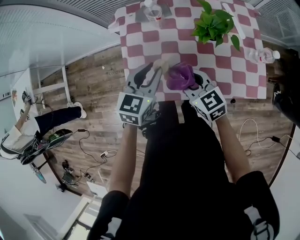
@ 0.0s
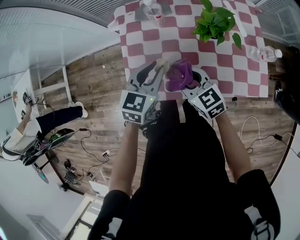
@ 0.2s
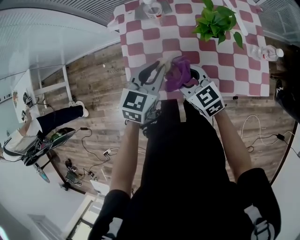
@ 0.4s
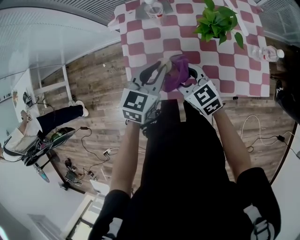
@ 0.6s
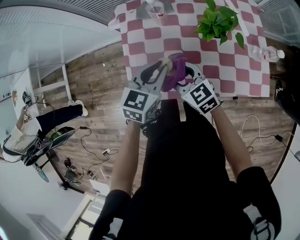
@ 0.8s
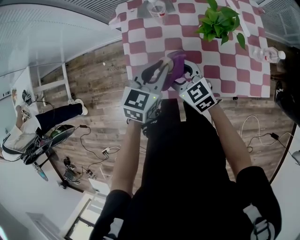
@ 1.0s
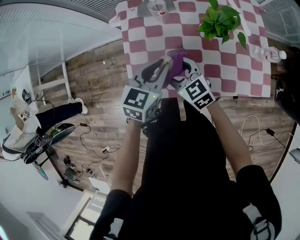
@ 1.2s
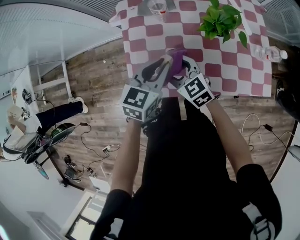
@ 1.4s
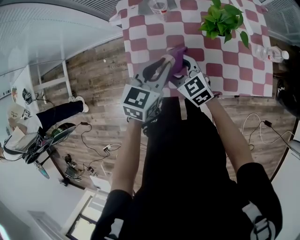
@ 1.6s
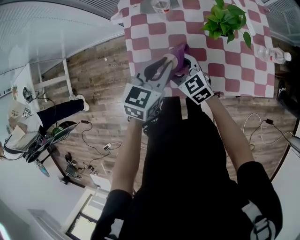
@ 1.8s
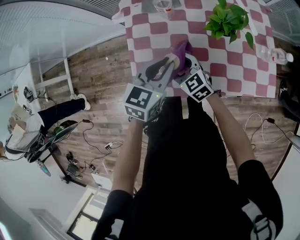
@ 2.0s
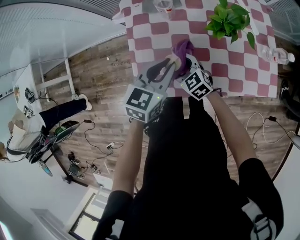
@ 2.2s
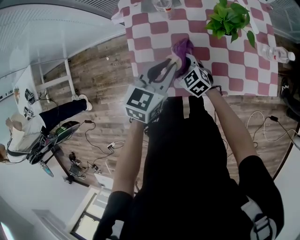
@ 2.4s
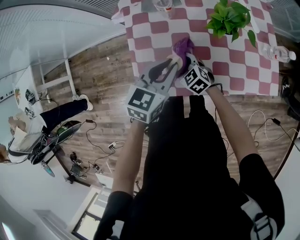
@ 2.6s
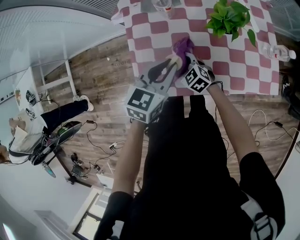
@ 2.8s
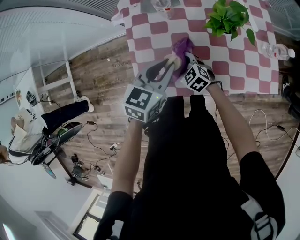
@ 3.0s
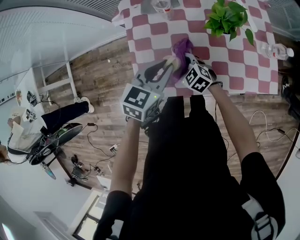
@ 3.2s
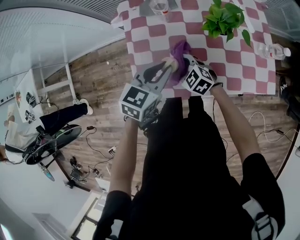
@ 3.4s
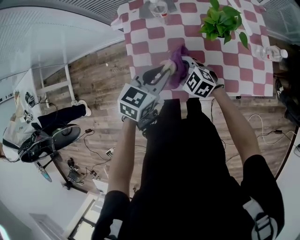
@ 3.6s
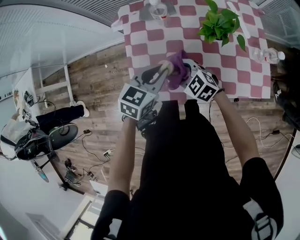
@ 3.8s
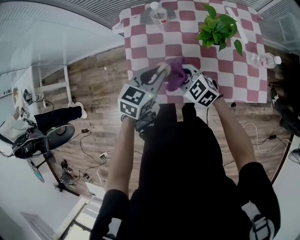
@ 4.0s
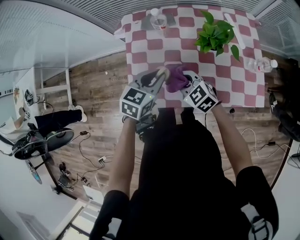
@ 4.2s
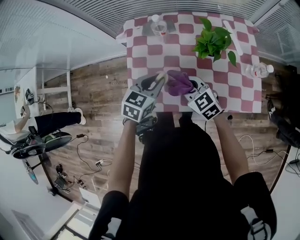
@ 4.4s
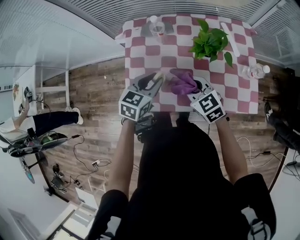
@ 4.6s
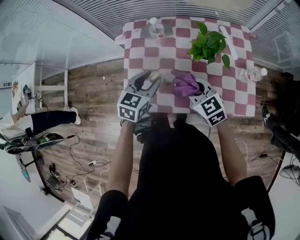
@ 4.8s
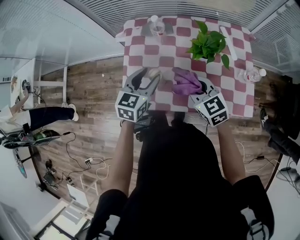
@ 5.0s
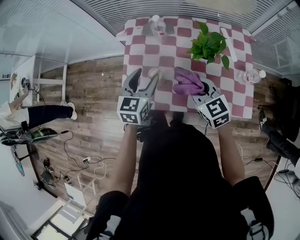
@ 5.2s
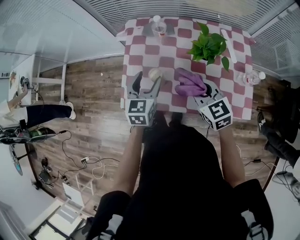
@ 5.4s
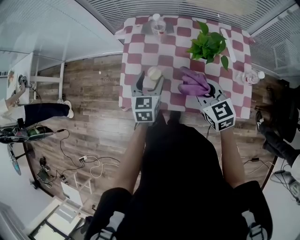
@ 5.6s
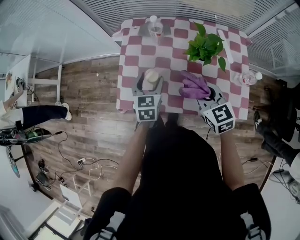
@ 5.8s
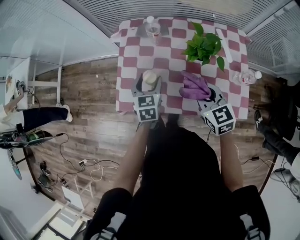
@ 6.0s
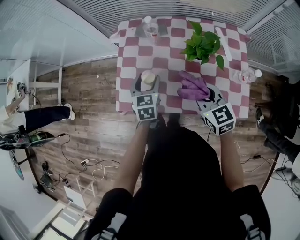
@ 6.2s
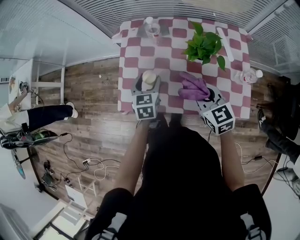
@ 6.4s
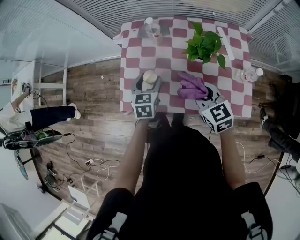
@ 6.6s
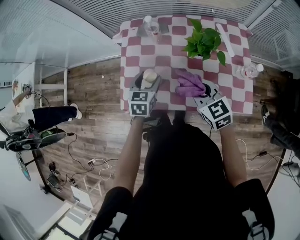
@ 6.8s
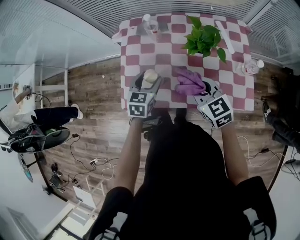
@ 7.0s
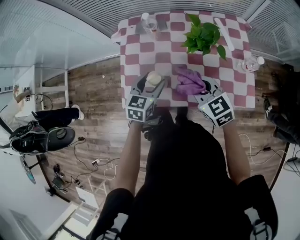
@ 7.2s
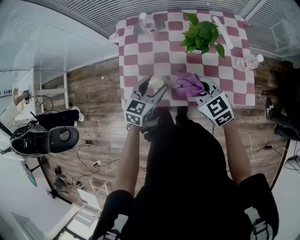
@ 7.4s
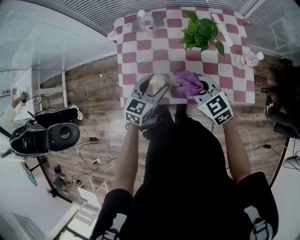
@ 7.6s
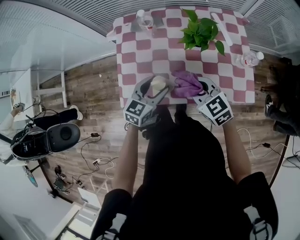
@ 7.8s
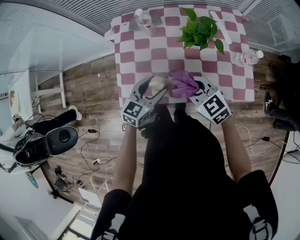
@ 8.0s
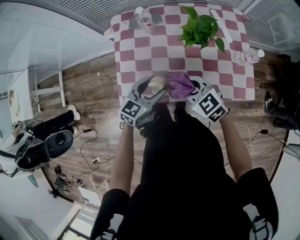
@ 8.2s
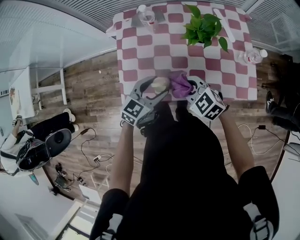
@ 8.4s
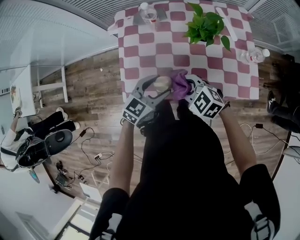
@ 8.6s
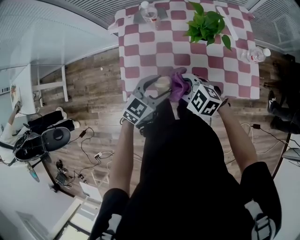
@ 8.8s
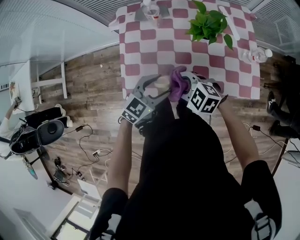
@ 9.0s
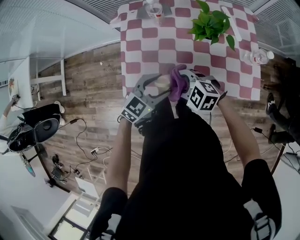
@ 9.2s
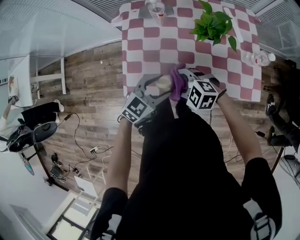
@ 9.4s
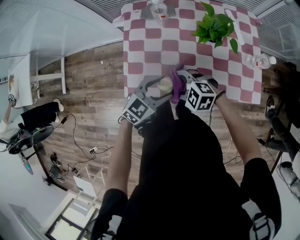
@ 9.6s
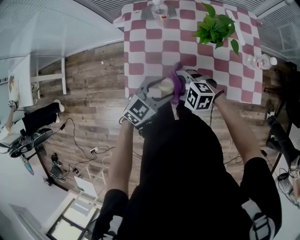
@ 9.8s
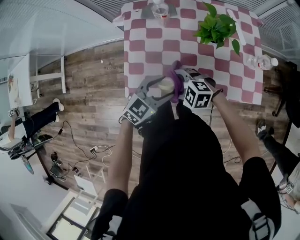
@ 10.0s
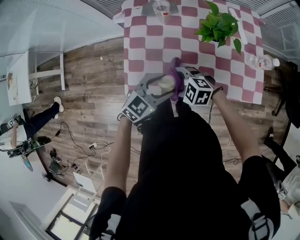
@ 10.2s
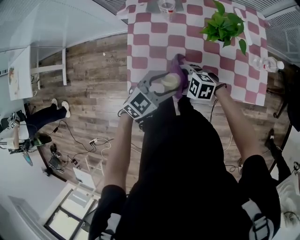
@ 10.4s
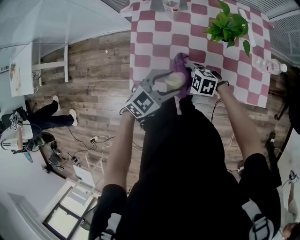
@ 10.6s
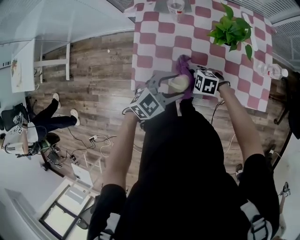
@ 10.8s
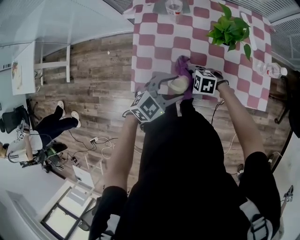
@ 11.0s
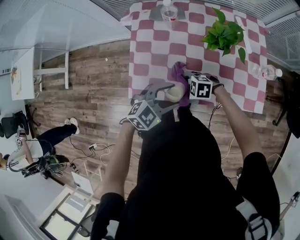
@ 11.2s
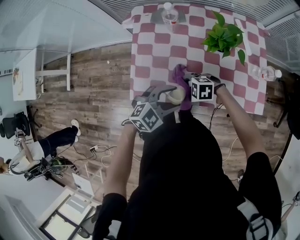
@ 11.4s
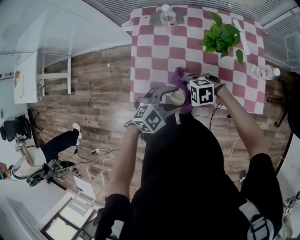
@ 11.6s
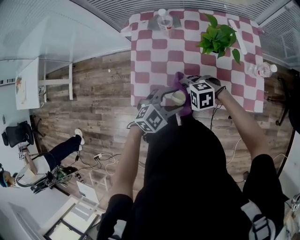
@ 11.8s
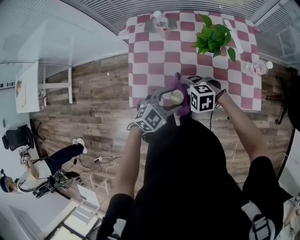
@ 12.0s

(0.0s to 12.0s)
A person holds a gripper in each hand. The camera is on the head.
0.0s - 1.6s: The right gripper shifts about 5 cm to the left, and opens its fingers.
1.6s - 3.0s: The right gripper moves downward, roughly 10 cm.
3.0s - 4.4s: The right gripper shifts approximately 15 cm upward and to the right, and closes its fingers.
4.4s - 6.0s: The right gripper travels to the right and upward by approximately 15 cm, while the left gripper turns by approximately 30 degrees, and opens up.
6.0s - 7.6s: The left gripper is displaced backward by roughly 5 cm, and swivels about 30 degrees.
7.6s - 9.0s: The right gripper moves about 10 cm, and changes its angle by about 30 degrees. The left gripper rotates about 20 degrees.
9.0s - 10.4s: The right gripper goes some 10 cm downward, and opens its fingers.
10.4s - 12.0s: The right gripper shifts by roughly 5 cm.

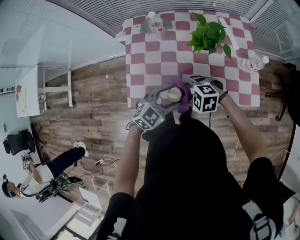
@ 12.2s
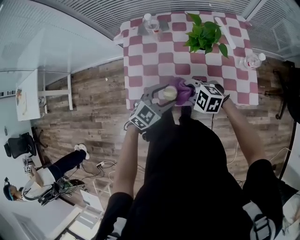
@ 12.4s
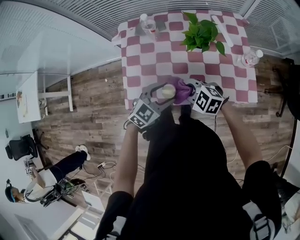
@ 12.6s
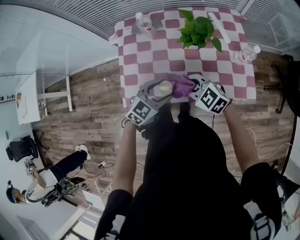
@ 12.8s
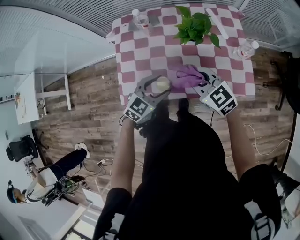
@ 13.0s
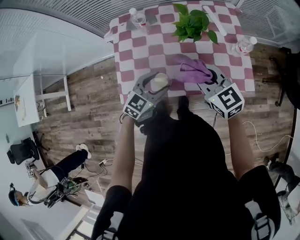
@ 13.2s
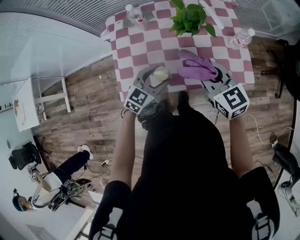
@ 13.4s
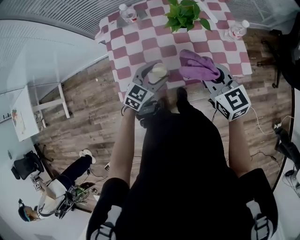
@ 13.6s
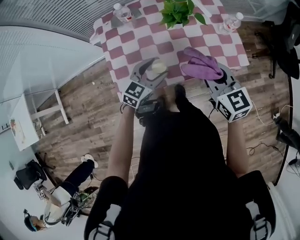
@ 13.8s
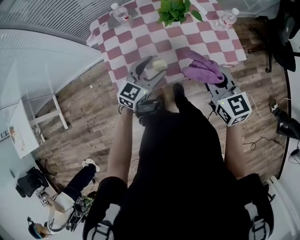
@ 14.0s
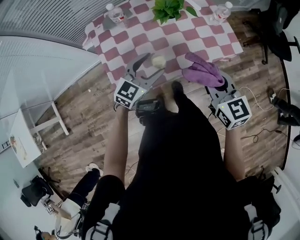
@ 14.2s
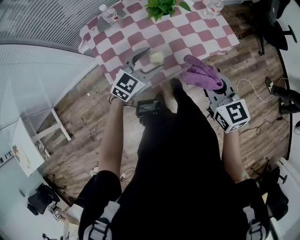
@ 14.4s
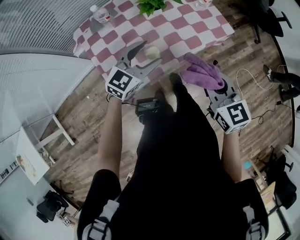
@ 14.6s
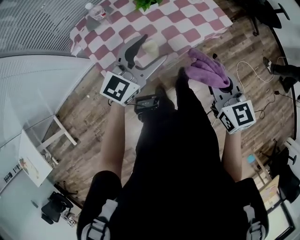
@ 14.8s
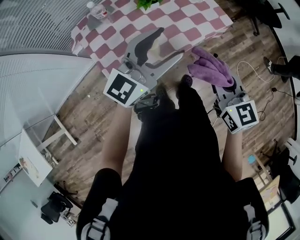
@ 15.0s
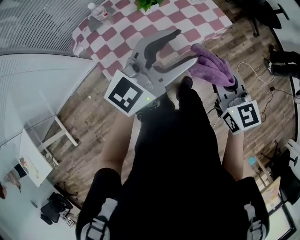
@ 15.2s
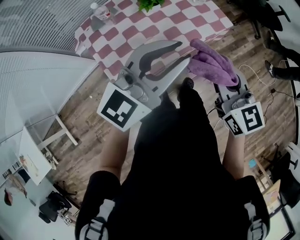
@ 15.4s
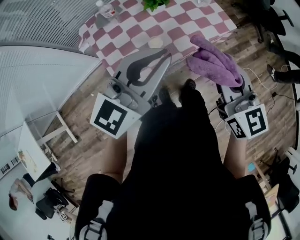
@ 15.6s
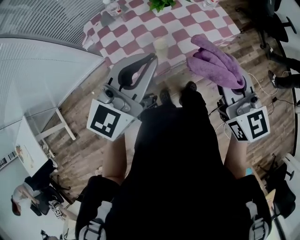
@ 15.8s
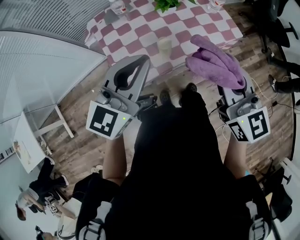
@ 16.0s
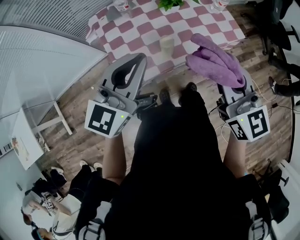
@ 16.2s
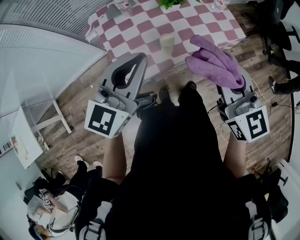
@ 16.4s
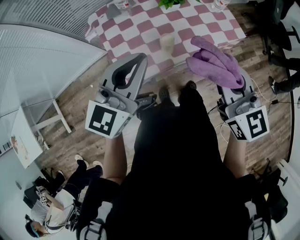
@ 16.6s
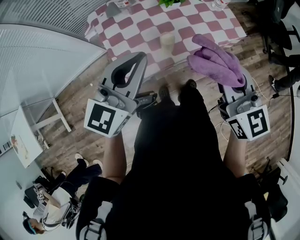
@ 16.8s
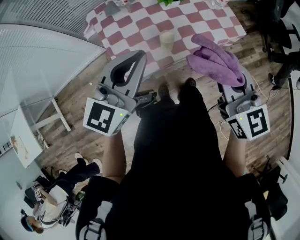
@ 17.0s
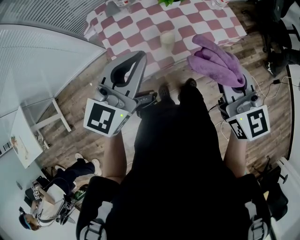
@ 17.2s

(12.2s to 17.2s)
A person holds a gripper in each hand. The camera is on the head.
12.2s - 13.8s: The right gripper is displaced upward by roughly 15 cm, tips its fingers upward by some 30 degrees, and closes its fingers.
13.8s - 15.6s: The left gripper heads upward, covering approximately 25 cm, rotates approximately 30 degrees, and closes its fingers. The right gripper shifts by some 20 cm, and changes its angle by some 20 degrees.
15.6s - 17.2s: The left gripper heads to the left, covering roughly 10 cm.

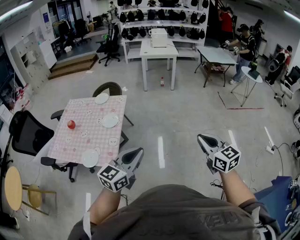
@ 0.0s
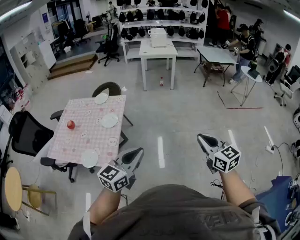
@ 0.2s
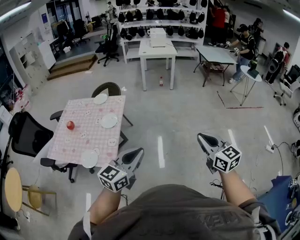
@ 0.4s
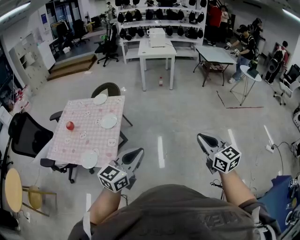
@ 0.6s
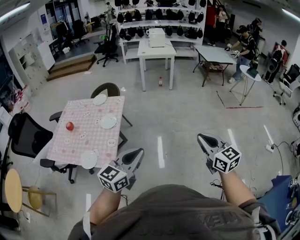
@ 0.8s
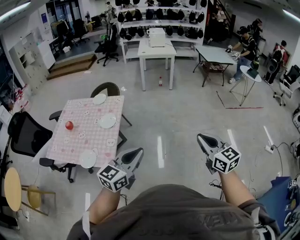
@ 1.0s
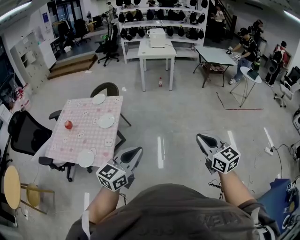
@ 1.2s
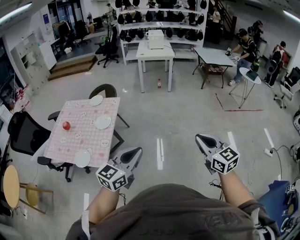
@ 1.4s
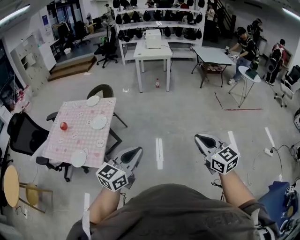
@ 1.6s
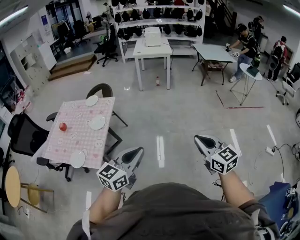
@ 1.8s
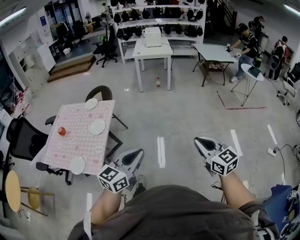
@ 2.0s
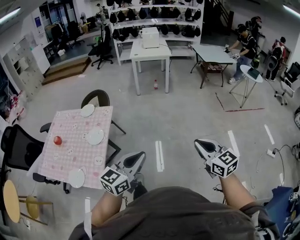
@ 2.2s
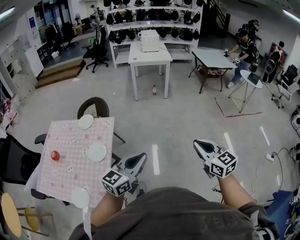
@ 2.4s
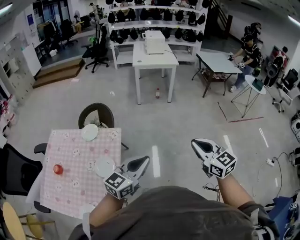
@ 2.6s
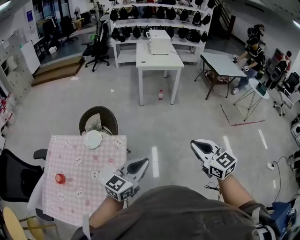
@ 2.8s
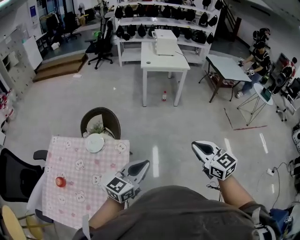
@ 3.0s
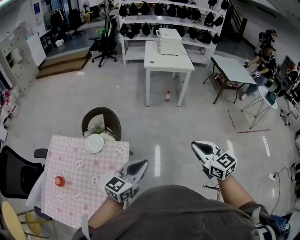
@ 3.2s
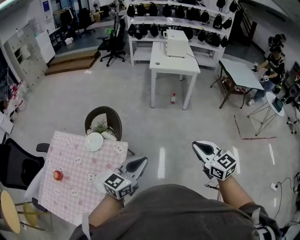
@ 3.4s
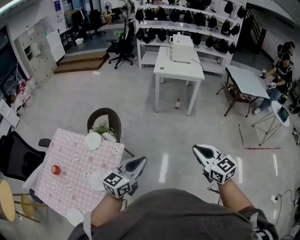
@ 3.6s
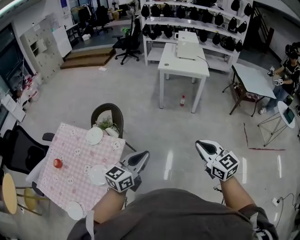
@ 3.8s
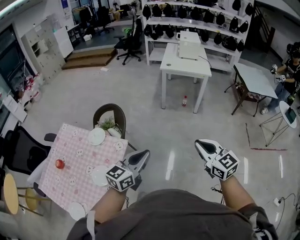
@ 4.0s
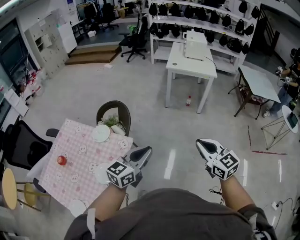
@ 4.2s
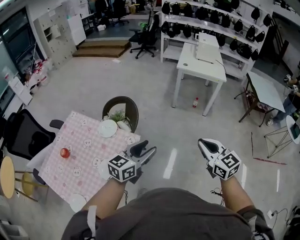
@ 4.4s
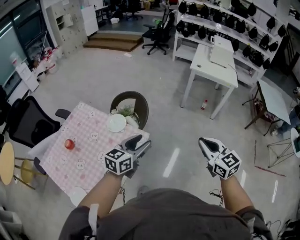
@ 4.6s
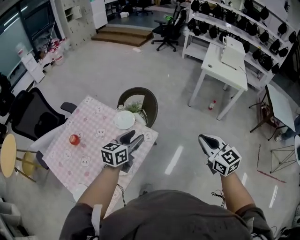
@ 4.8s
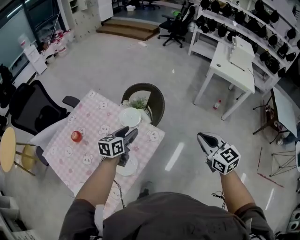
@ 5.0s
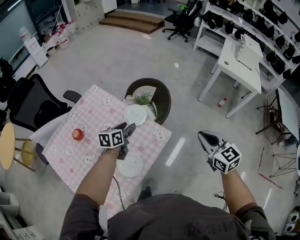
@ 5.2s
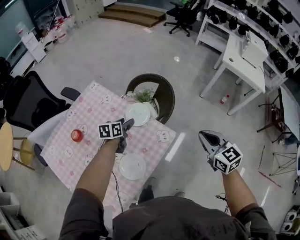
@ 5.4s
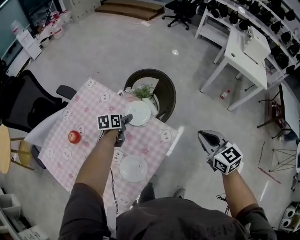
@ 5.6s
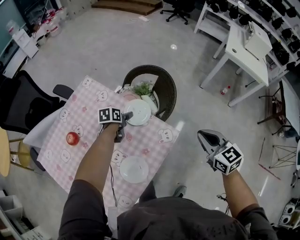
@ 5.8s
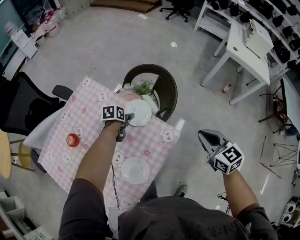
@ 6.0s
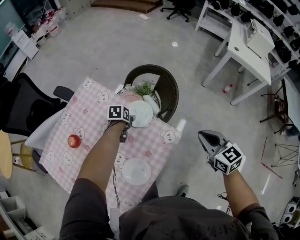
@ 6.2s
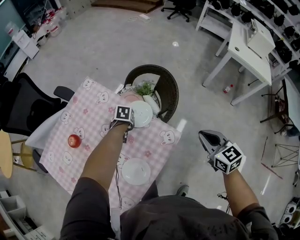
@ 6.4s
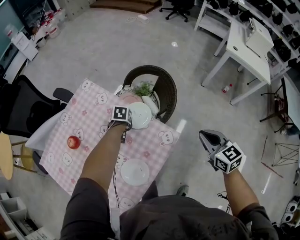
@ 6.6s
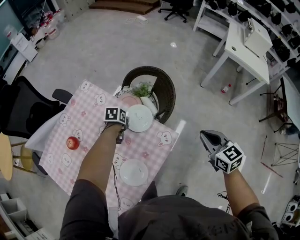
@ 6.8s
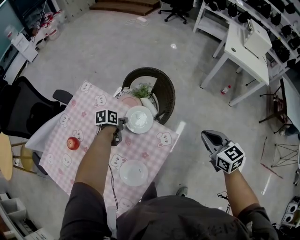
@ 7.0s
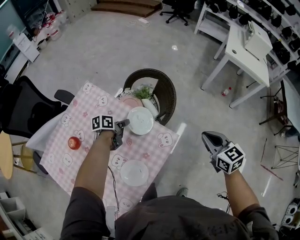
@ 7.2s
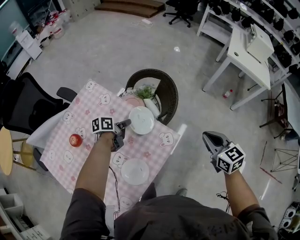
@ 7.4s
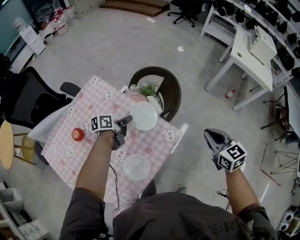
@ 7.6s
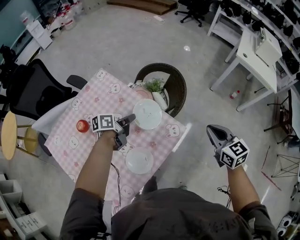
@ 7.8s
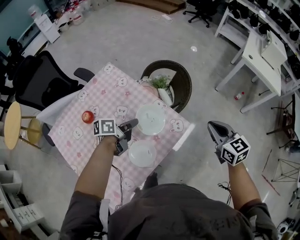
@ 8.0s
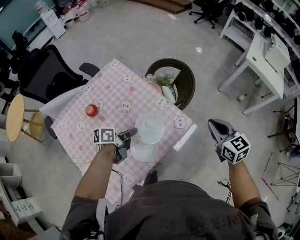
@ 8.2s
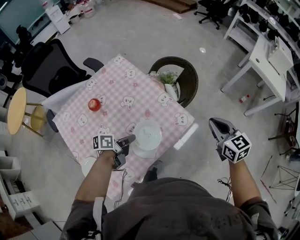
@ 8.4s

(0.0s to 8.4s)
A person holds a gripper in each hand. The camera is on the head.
0.0s - 1.4s: The two grippers go some 5 cm to the right.
1.4s - 2.8s: Both grippers are carried forward and to the left, approximately 50 cm.
2.8s - 4.2s: The right gripper is displaced forward by about 15 cm. The left gripper moves forward and to the right, approximately 15 cm.
4.2s - 5.6s: The right gripper is displaced to the left, forward and downward by approximately 35 cm, and swivels approximately 20 degrees; the left gripper is displaced to the left, downward and forward by approximately 60 cm, tilts its fingers about 40 degrees downward, and opens its fingers.
5.6s - 7.0s: The left gripper closes.
7.0s - 8.4s: The left gripper shifts about 25 cm backward, and turns by roughly 30 degrees; the right gripper ends up about 5 cm from where it was.
